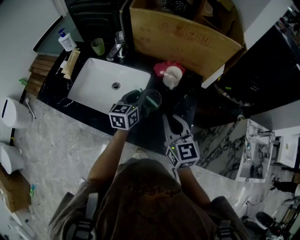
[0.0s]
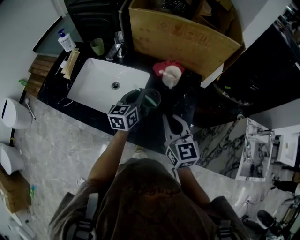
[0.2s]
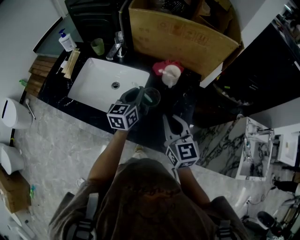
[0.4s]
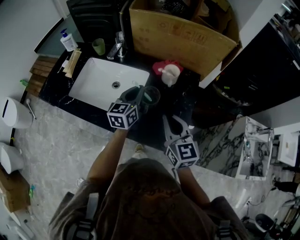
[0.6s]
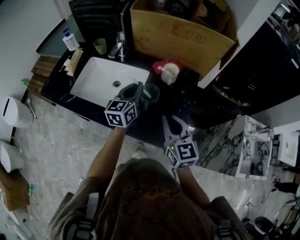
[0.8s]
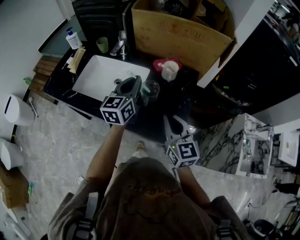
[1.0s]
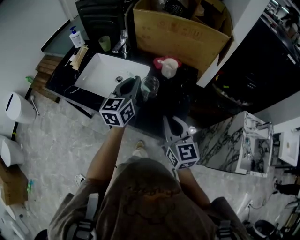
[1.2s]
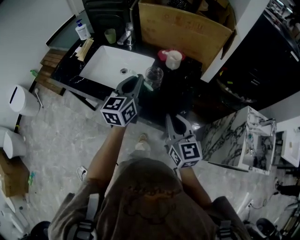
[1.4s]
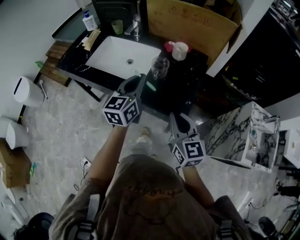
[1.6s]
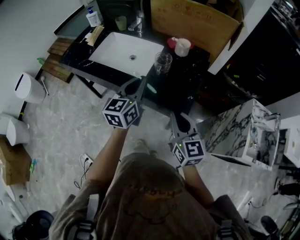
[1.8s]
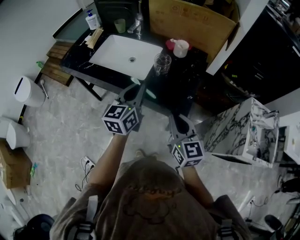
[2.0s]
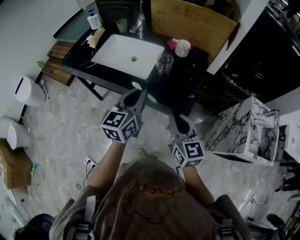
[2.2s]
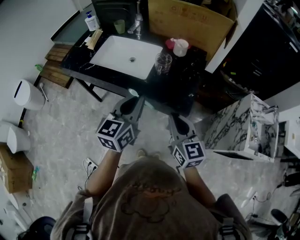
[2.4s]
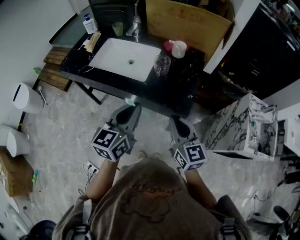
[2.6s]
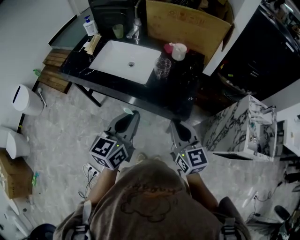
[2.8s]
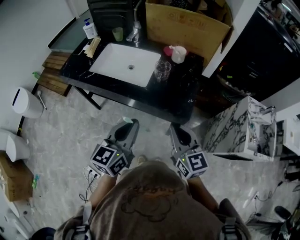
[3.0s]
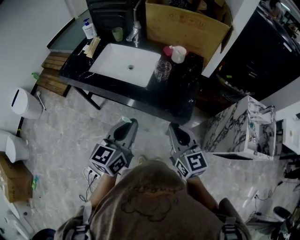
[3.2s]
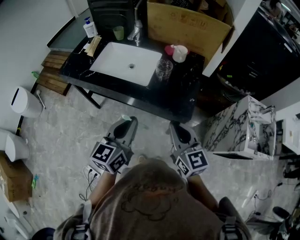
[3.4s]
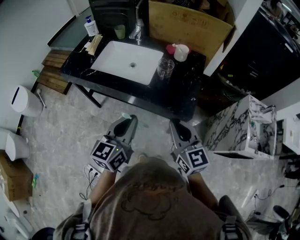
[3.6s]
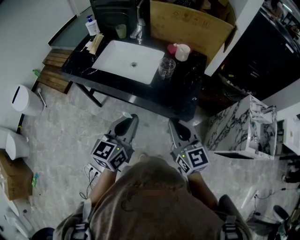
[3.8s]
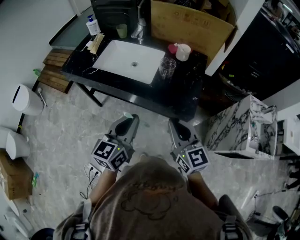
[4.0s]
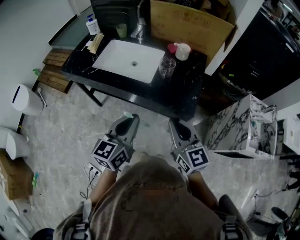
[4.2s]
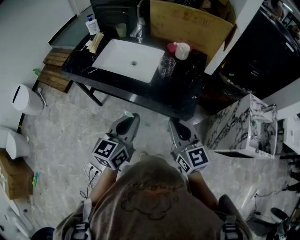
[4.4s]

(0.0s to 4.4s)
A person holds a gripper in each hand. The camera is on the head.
0.0s - 1.4s: The left gripper goes approximately 20 cm backward and upward. Meanwhile the right gripper travels backward by roughly 15 cm.
1.4s - 3.0s: The left gripper shifts approximately 25 cm backward; the right gripper travels backward by about 10 cm.
3.0s - 4.4s: The grippers move only a little.

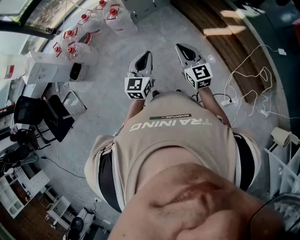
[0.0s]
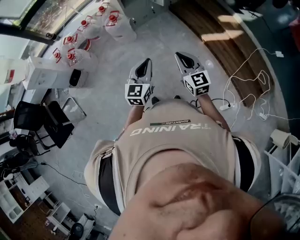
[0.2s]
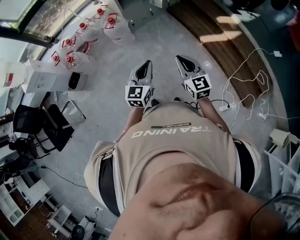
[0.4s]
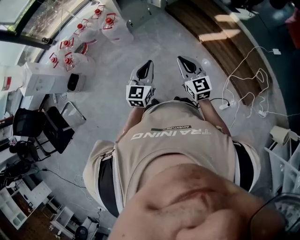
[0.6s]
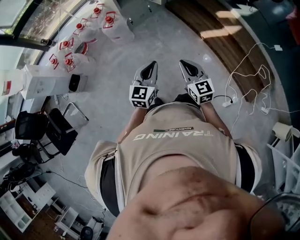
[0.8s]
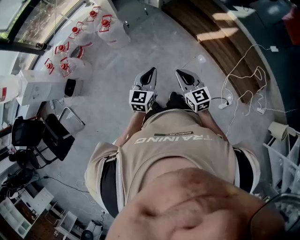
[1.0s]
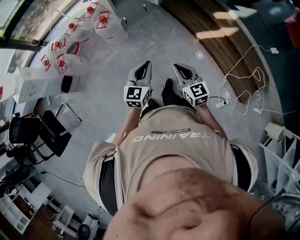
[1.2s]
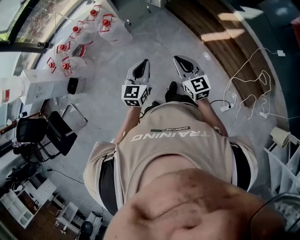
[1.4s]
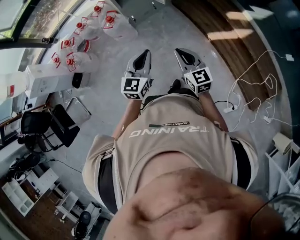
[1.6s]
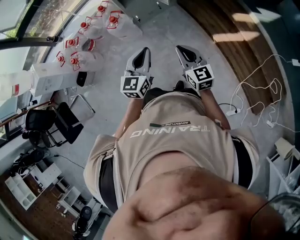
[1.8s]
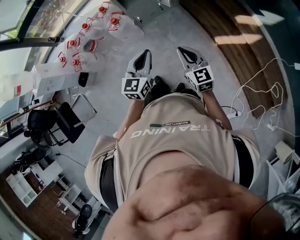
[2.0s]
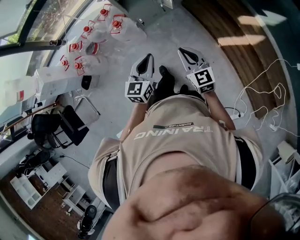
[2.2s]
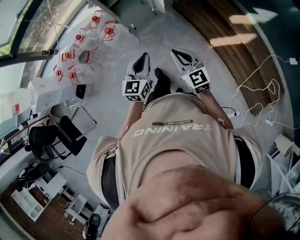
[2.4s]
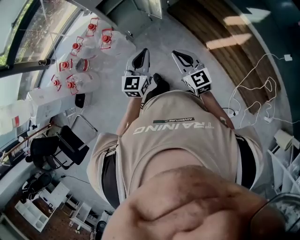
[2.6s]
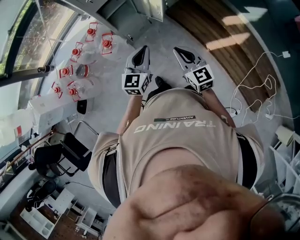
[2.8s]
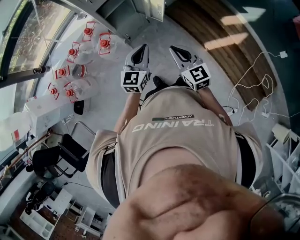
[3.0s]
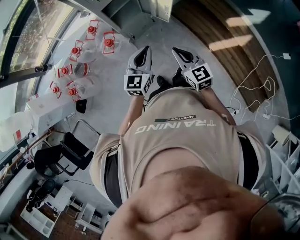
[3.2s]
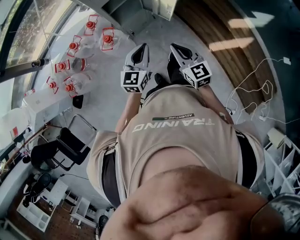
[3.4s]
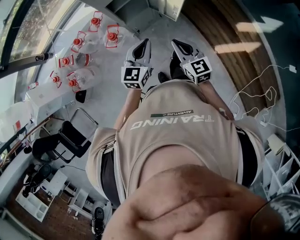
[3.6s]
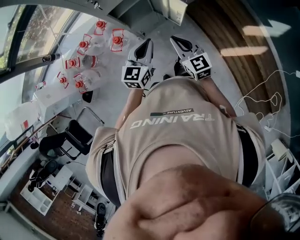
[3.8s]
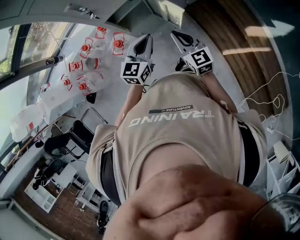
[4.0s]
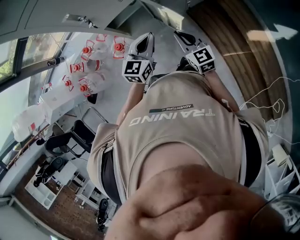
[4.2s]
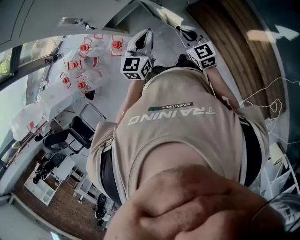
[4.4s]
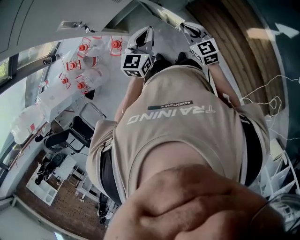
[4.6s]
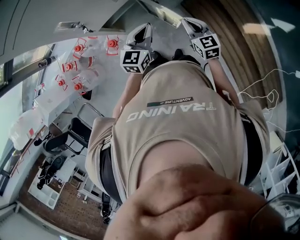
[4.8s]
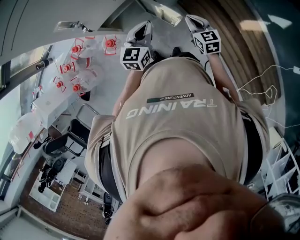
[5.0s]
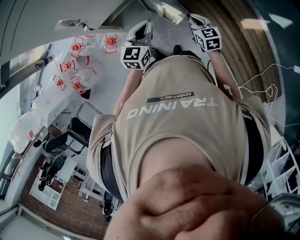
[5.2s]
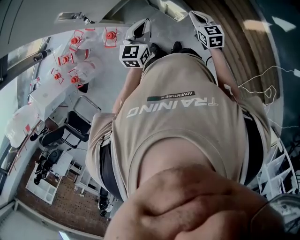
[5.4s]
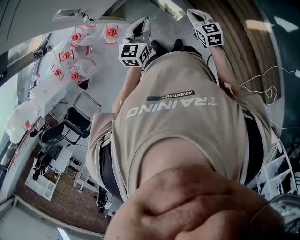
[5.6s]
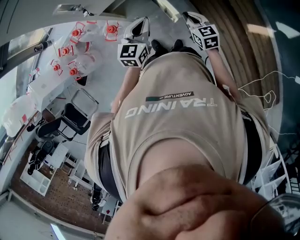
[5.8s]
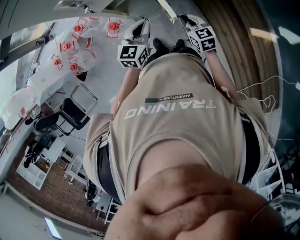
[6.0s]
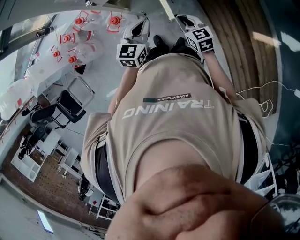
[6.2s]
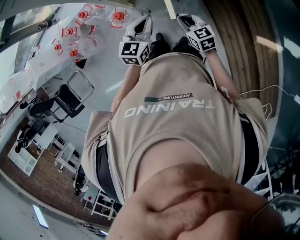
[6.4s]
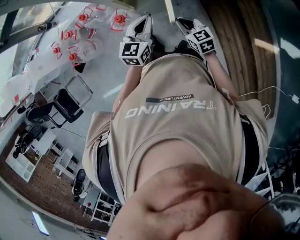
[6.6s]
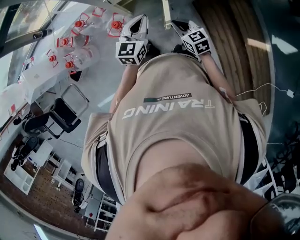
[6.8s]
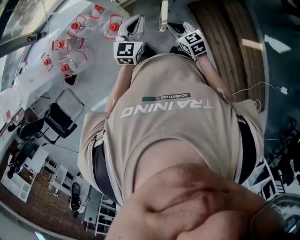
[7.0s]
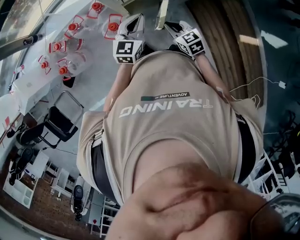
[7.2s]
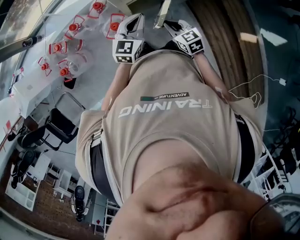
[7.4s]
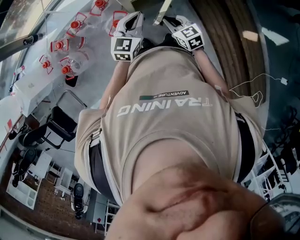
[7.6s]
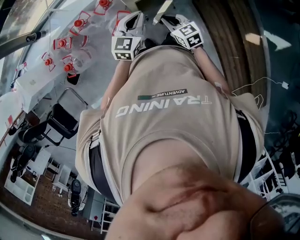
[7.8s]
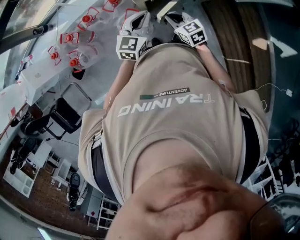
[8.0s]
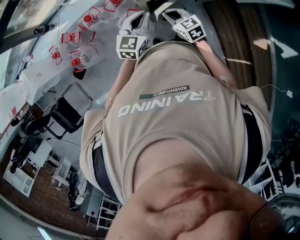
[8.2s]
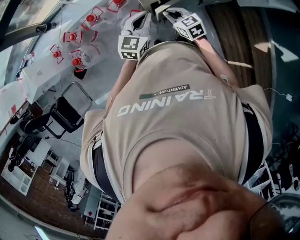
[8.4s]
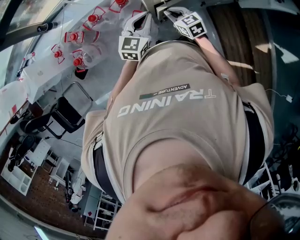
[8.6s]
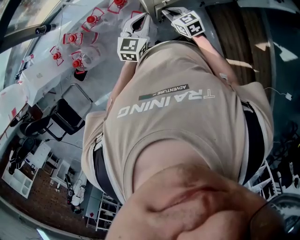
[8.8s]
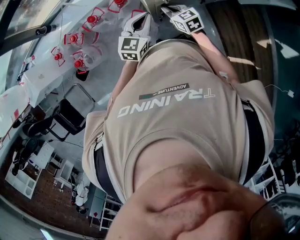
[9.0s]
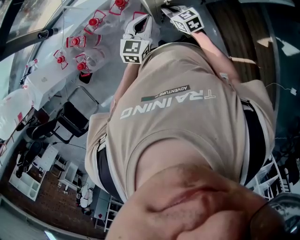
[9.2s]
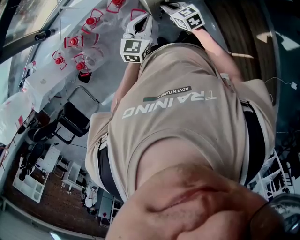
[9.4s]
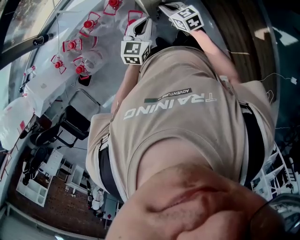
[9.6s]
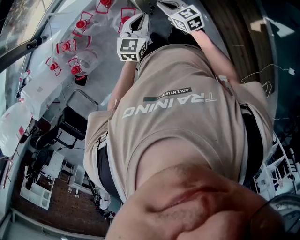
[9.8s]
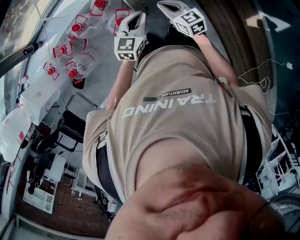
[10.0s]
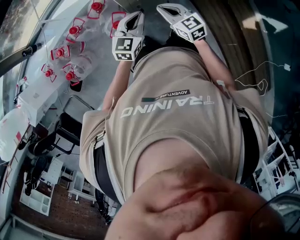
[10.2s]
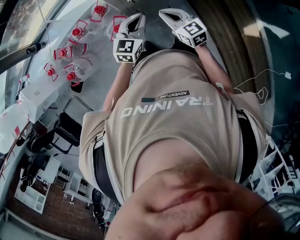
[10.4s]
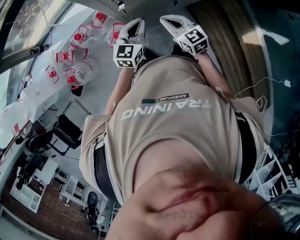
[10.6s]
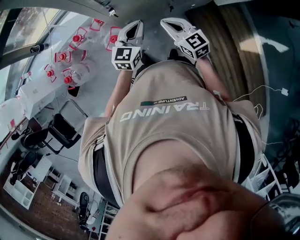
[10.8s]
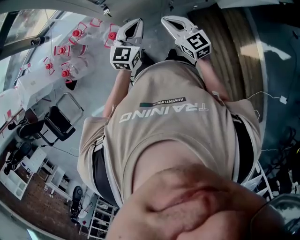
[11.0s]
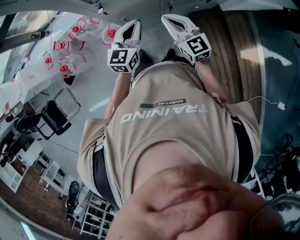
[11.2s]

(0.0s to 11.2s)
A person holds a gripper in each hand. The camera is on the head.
0.0s - 1.6s: The two grippers go some 15 cm forward.
1.6s - 3.2s: Both grippers travel together forward, approximately 30 cm.
3.2s - 4.8s: Both grippers travel together forward, roughly 30 cm.
4.8s - 6.4s: The left gripper goes about 5 cm to the left, while the right gripper goes approximately 10 cm to the left and downward, and rotates roughly 20 degrees.
6.4s - 8.0s: Both grippers move to the left and forward, about 20 cm.
8.0s - 9.6s: The left gripper ends up about 5 cm from where it was. The right gripper goes roughly 5 cm forward.
9.6s - 11.2s: The two grippers go roughly 25 cm to the right and upward. The right gripper changes its angle by approximately 30 degrees.

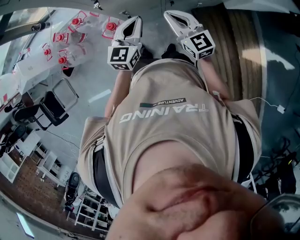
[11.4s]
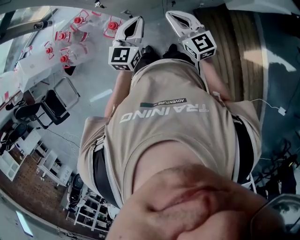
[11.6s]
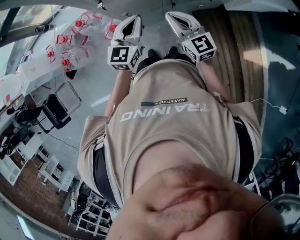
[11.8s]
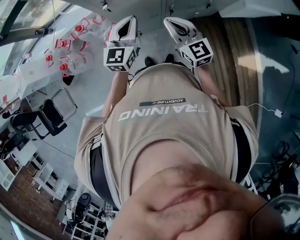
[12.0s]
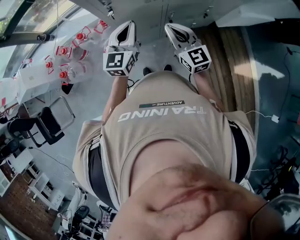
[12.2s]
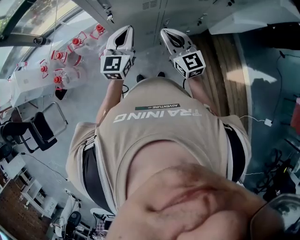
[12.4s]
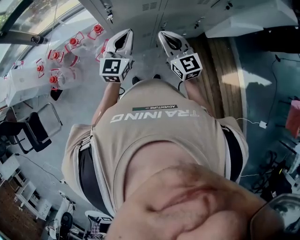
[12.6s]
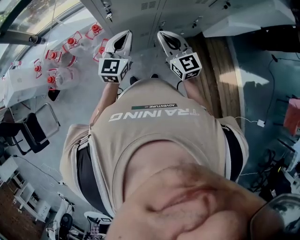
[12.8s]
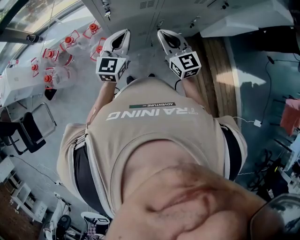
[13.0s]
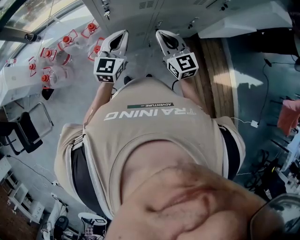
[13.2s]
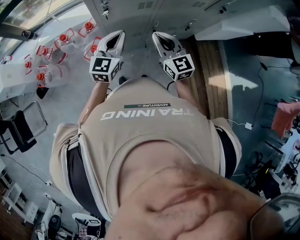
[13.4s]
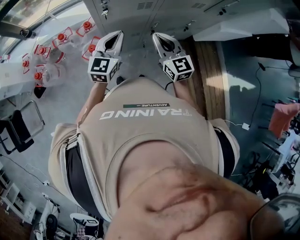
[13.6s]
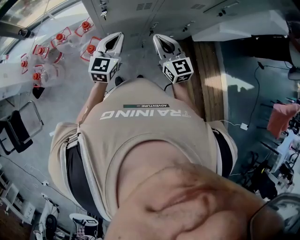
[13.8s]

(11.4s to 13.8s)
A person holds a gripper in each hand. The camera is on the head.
11.4s - 12.6s: Both grippers move upward, some 5 cm.
12.6s - 13.8s: The grippers make only small movements.

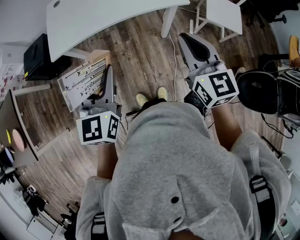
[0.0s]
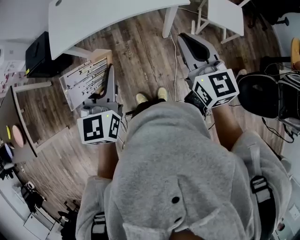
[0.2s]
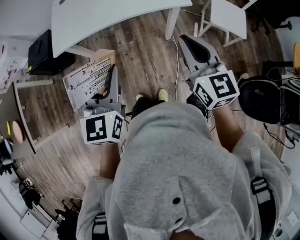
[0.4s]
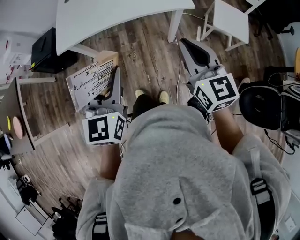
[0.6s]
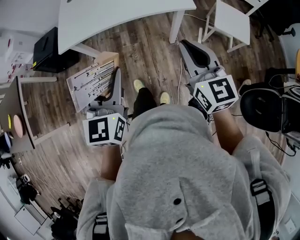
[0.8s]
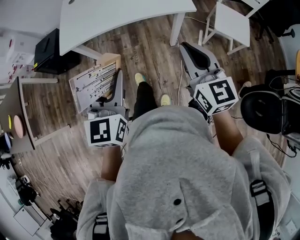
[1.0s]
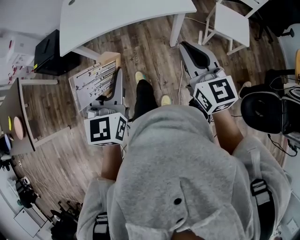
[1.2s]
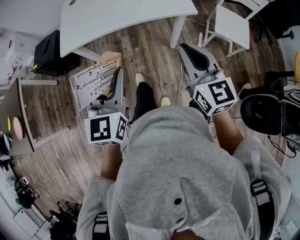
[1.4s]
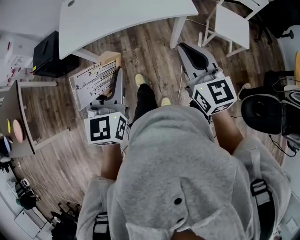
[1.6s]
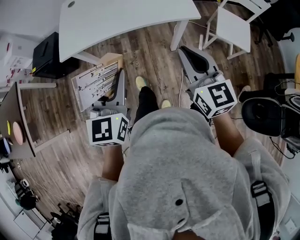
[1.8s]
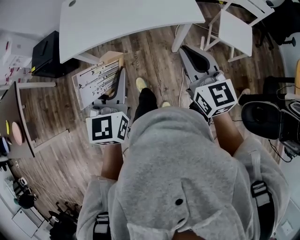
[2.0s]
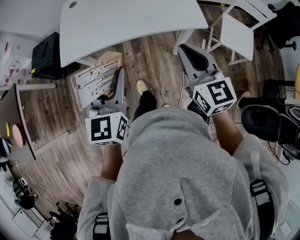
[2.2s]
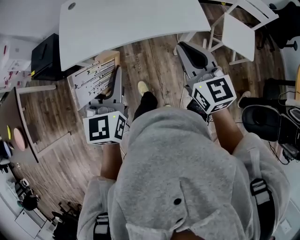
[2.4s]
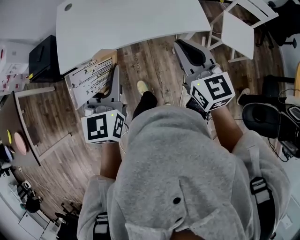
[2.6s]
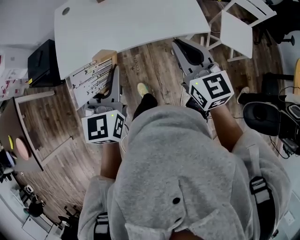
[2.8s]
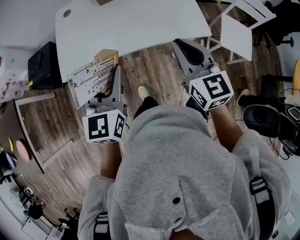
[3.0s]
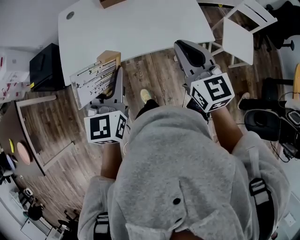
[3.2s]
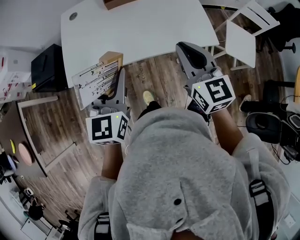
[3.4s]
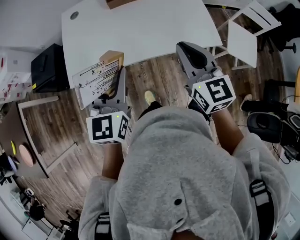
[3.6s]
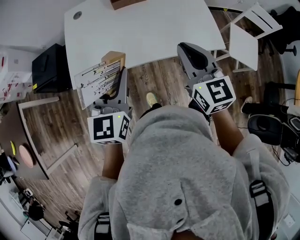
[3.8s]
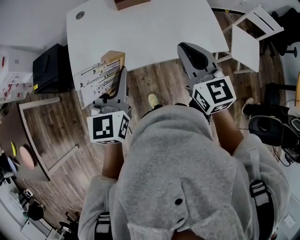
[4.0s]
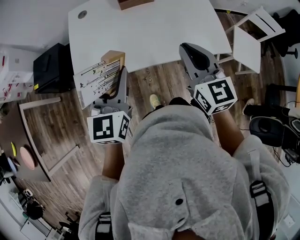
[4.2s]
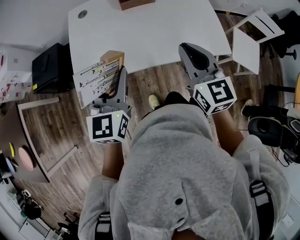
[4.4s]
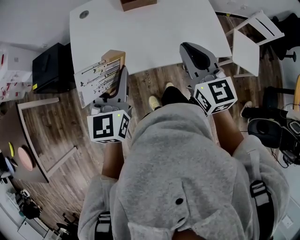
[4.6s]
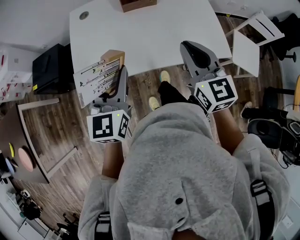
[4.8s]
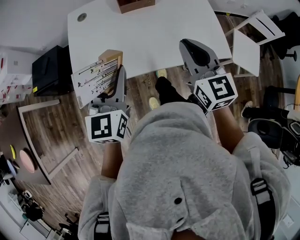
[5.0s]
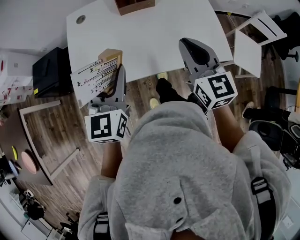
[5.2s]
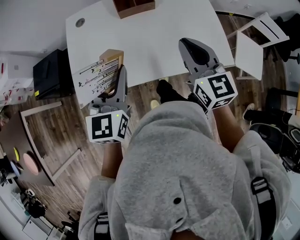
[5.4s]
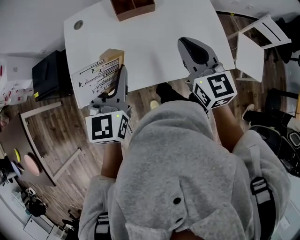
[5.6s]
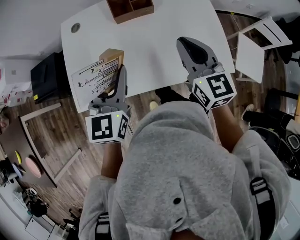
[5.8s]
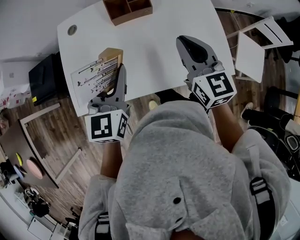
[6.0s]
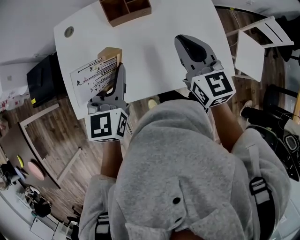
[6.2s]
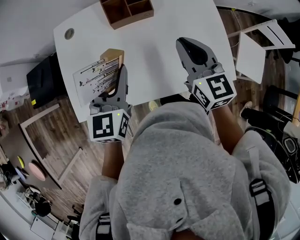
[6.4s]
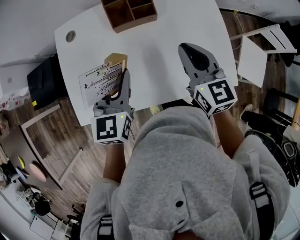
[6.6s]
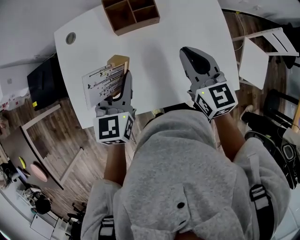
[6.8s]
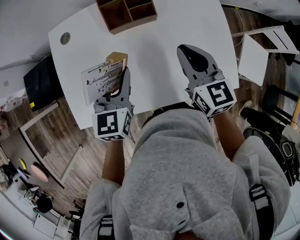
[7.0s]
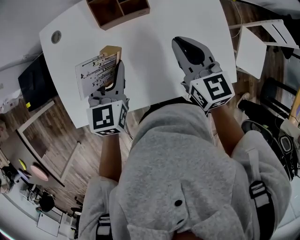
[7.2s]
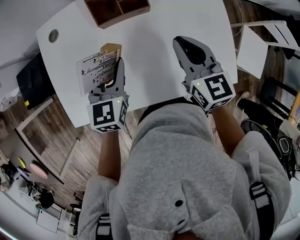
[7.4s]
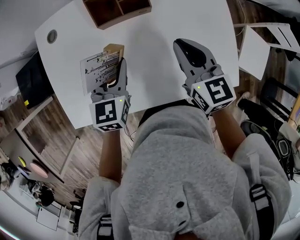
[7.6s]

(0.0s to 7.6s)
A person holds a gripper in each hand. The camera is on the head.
0.0s - 1.6s: There are only small adjustments of the grippers.
1.6s - 3.0s: Both grippers travel together forward, about 20 cm.
3.0s - 4.6s: The two grippers go approximately 15 cm to the left and forward.
4.6s - 6.0s: The two grippers go roughly 15 cm forward.
6.0s - 7.6s: Both grippers move downward and forward, some 15 cm.
